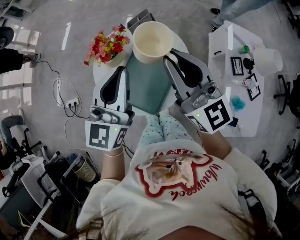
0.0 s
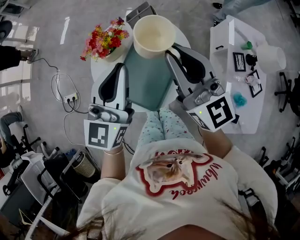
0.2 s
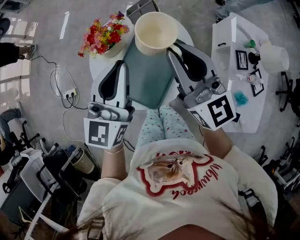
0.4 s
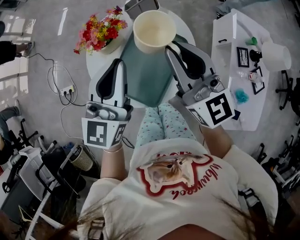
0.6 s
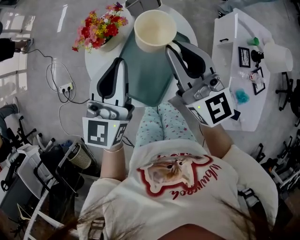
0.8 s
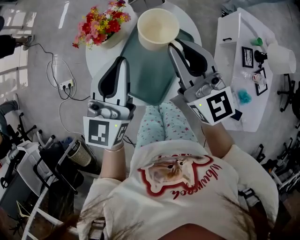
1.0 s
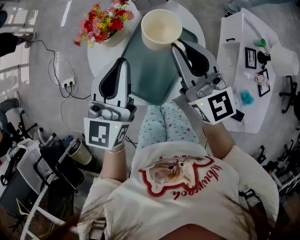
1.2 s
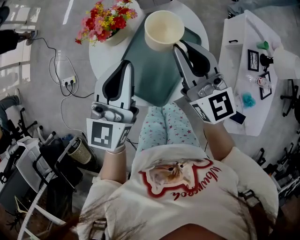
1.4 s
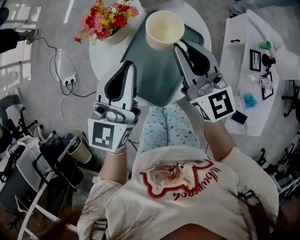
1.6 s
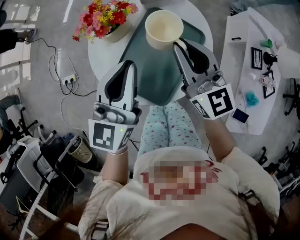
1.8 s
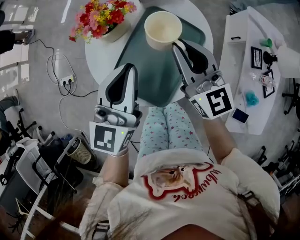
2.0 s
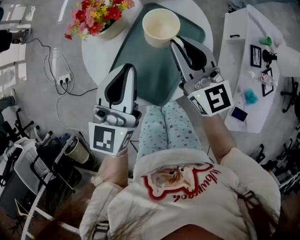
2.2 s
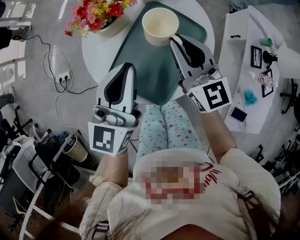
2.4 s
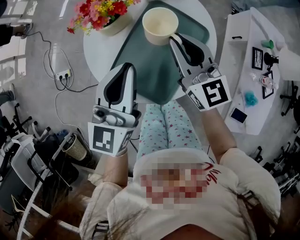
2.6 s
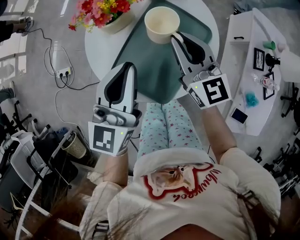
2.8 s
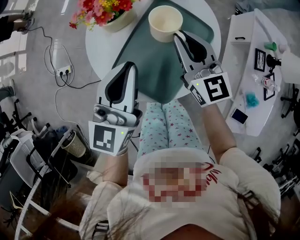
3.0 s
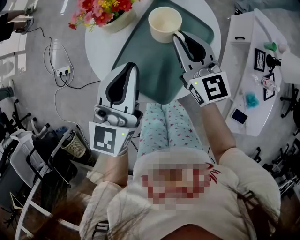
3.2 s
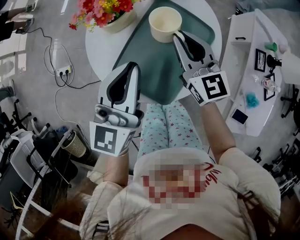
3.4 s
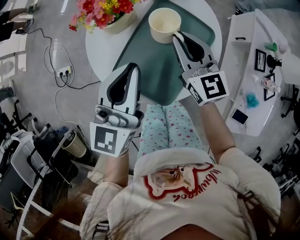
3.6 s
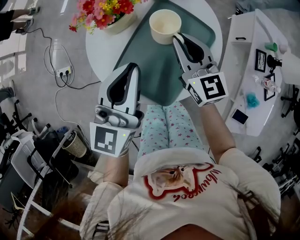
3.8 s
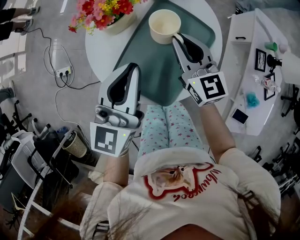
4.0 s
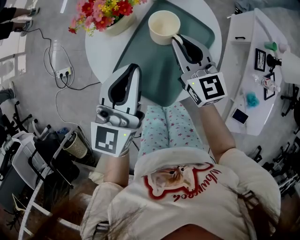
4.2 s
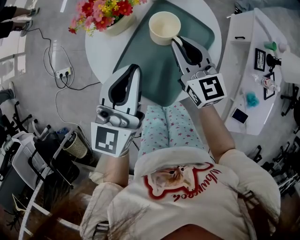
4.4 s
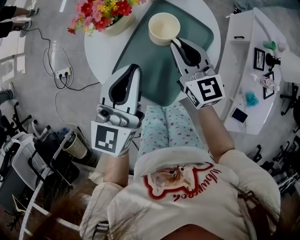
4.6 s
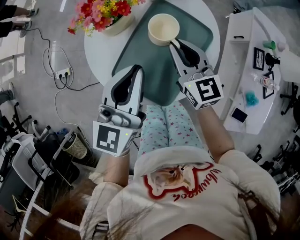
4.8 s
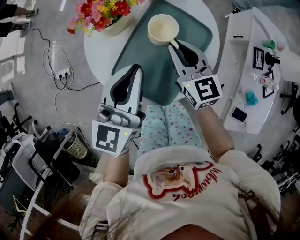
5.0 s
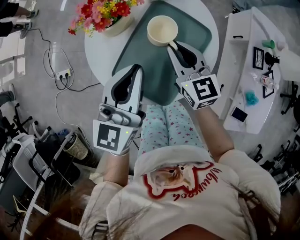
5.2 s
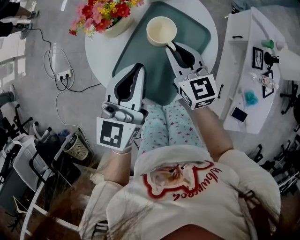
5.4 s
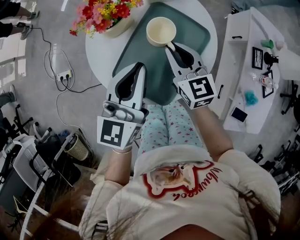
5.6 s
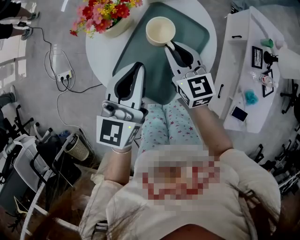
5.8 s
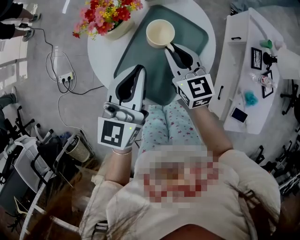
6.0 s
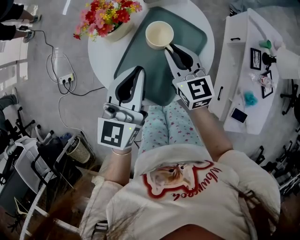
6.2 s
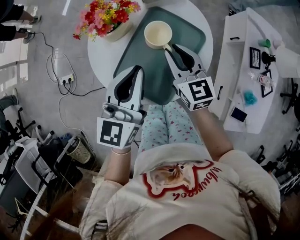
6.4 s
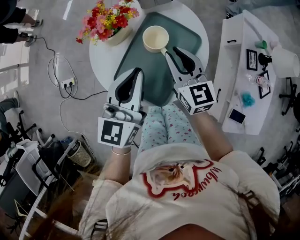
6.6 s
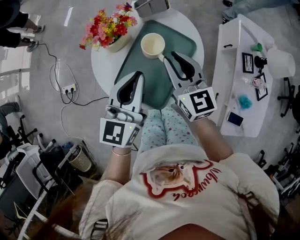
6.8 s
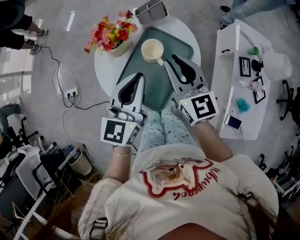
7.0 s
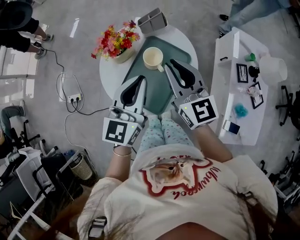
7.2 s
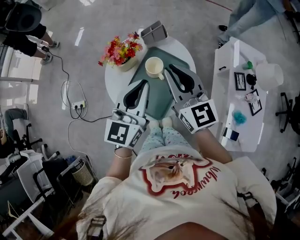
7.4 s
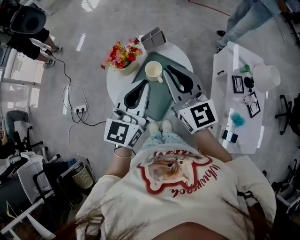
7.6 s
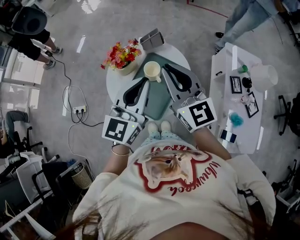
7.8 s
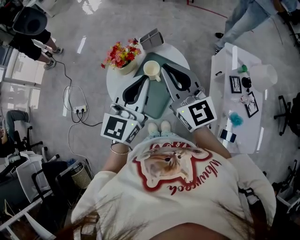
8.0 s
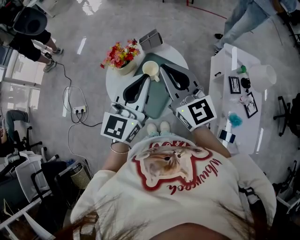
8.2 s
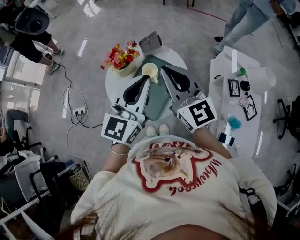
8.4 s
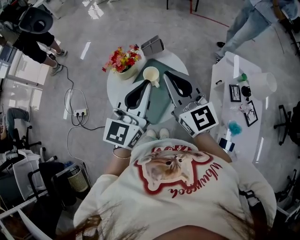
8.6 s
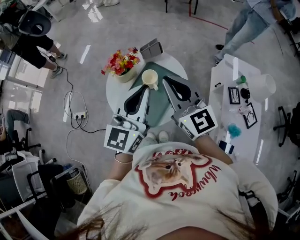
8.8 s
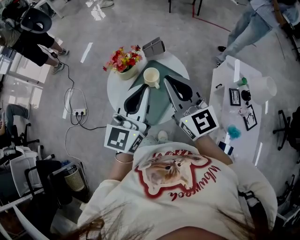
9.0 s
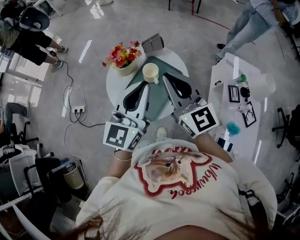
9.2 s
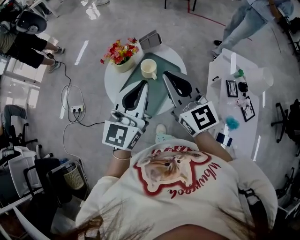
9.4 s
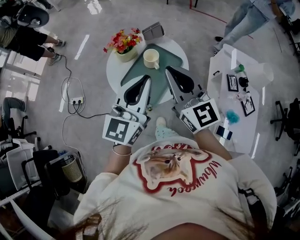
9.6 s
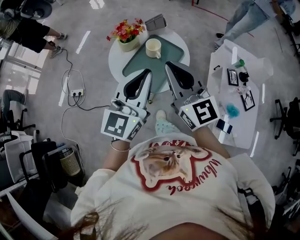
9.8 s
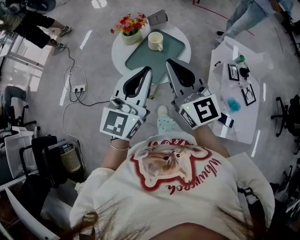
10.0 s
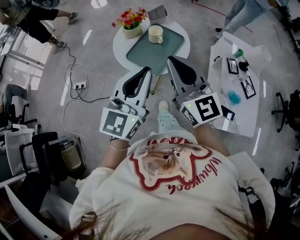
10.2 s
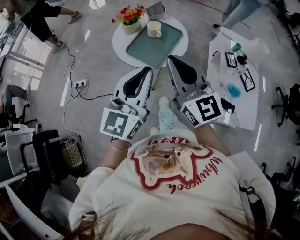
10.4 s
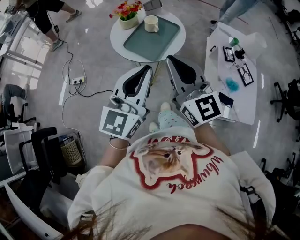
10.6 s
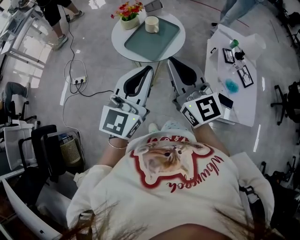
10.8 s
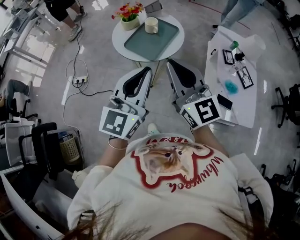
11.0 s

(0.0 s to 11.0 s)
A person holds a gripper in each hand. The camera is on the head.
0.0 s - 1.6 s: Both grippers move downward, approximately 10 cm.
1.6 s - 3.2 s: The right gripper moves downward, about 10 cm.
3.2 s - 4.8 s: The grippers move only a little.
4.8 s - 6.2 s: Neither gripper changes place.
6.2 s - 7.8 s: The left gripper moves upward, roughly 15 cm. Meanwhile the right gripper shifts about 25 cm upward, and turns by roughly 20 degrees.
7.8 s - 9.4 s: The grippers both shift backward by some 5 cm.
9.4 s - 11.0 s: The grippers both shift backward by roughly 30 cm.

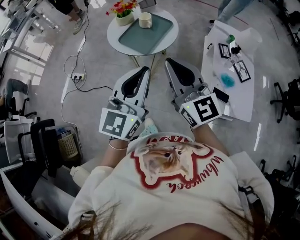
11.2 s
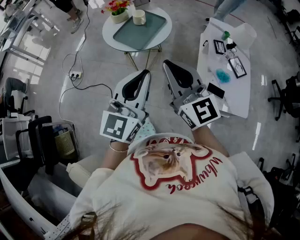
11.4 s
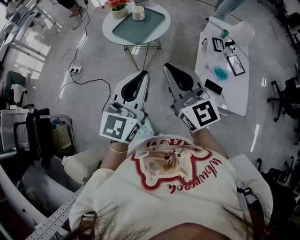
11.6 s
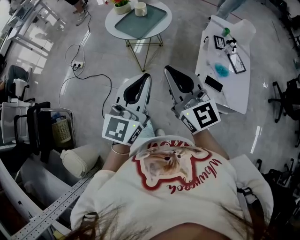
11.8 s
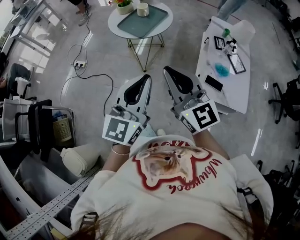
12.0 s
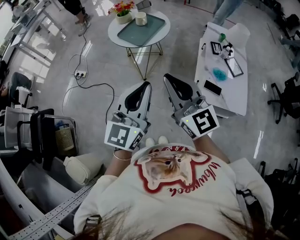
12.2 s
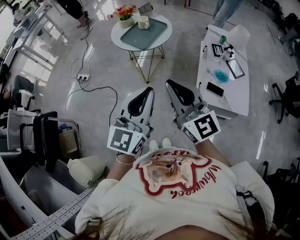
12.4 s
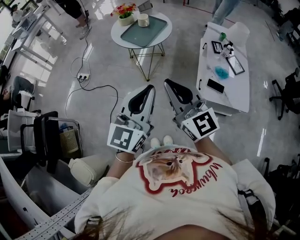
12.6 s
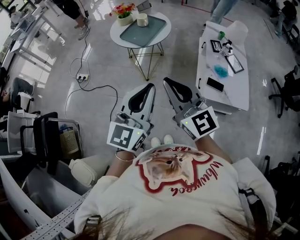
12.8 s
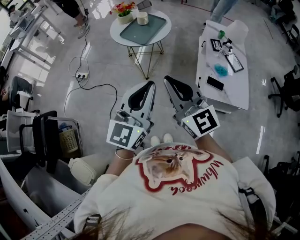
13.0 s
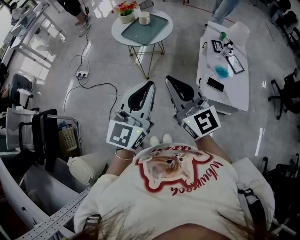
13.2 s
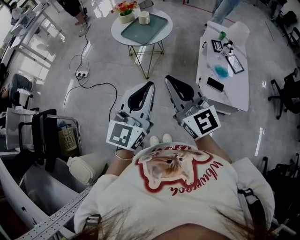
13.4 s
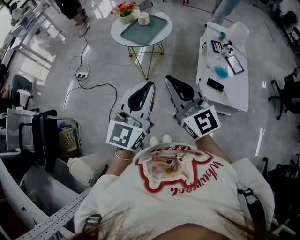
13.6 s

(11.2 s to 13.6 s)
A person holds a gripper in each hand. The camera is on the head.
11.2 s - 12.4 s: Both grippers travel together backward, about 20 cm.
12.4 s - 13.6 s: The grippers move only a little.

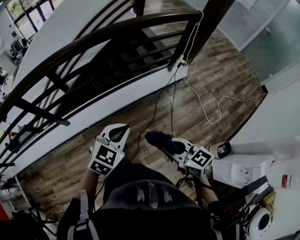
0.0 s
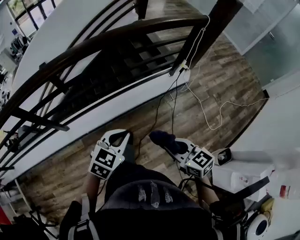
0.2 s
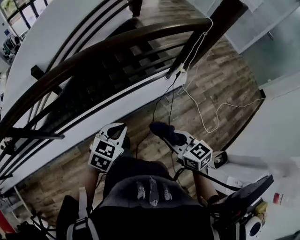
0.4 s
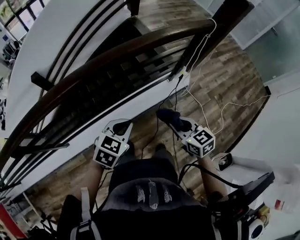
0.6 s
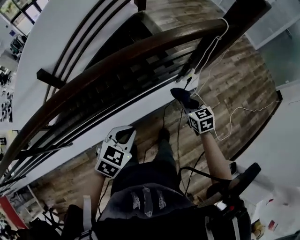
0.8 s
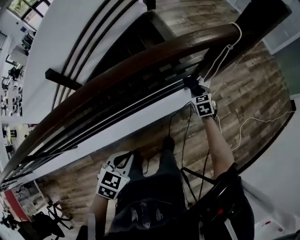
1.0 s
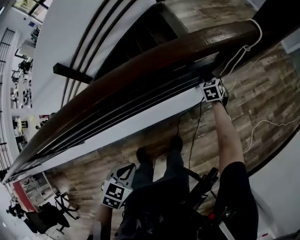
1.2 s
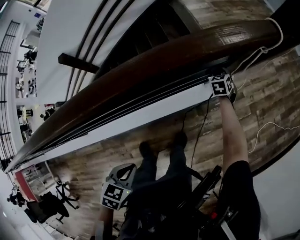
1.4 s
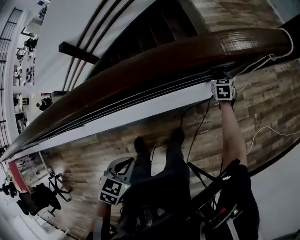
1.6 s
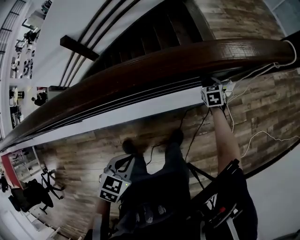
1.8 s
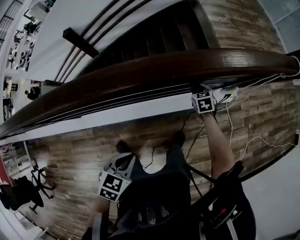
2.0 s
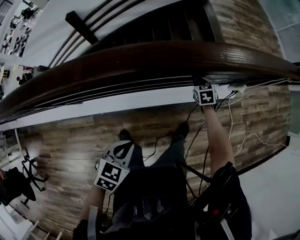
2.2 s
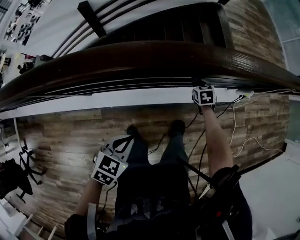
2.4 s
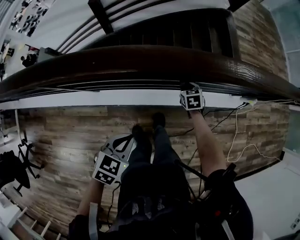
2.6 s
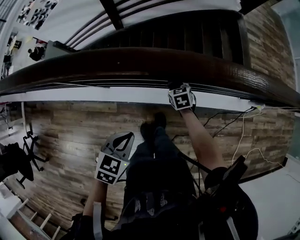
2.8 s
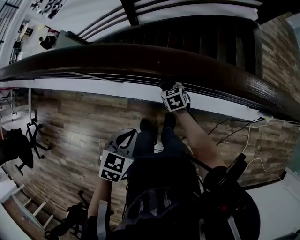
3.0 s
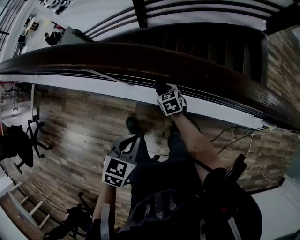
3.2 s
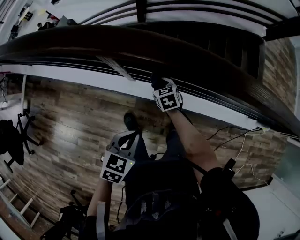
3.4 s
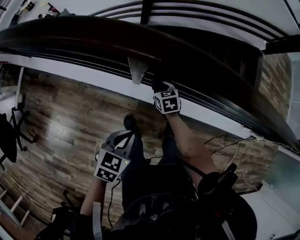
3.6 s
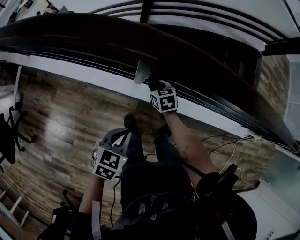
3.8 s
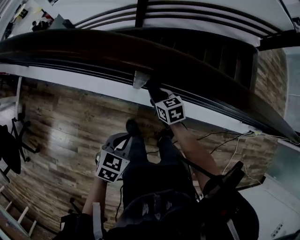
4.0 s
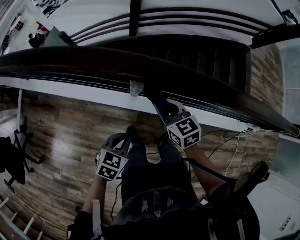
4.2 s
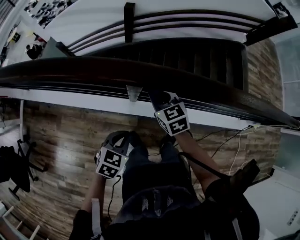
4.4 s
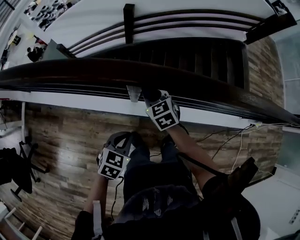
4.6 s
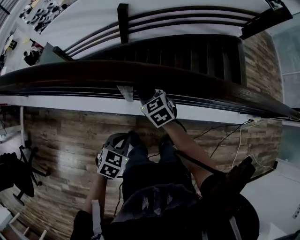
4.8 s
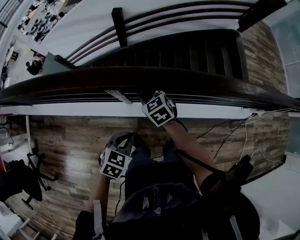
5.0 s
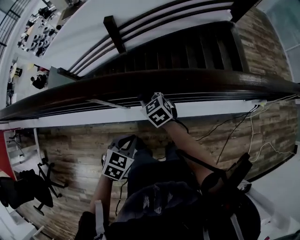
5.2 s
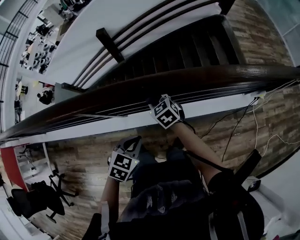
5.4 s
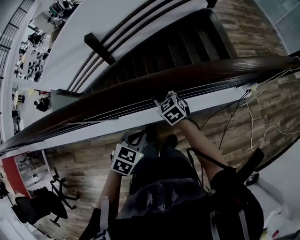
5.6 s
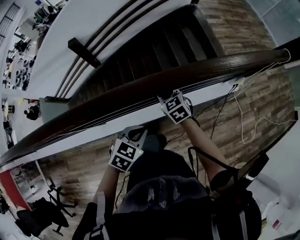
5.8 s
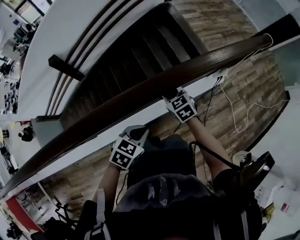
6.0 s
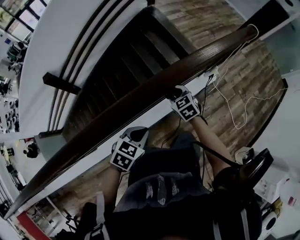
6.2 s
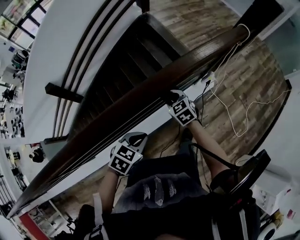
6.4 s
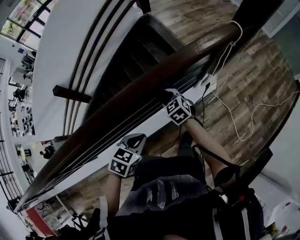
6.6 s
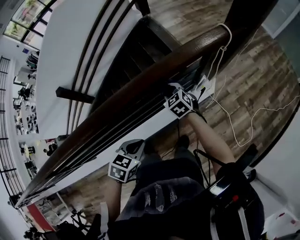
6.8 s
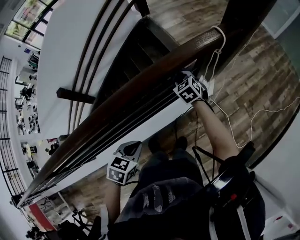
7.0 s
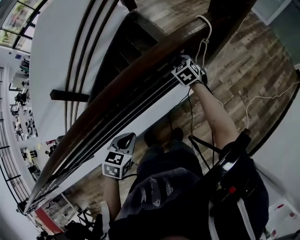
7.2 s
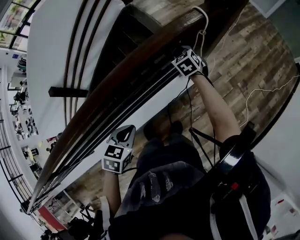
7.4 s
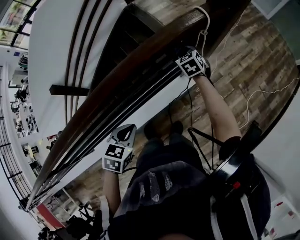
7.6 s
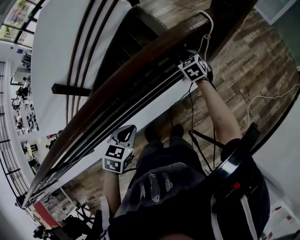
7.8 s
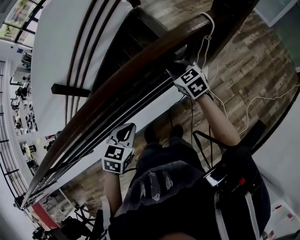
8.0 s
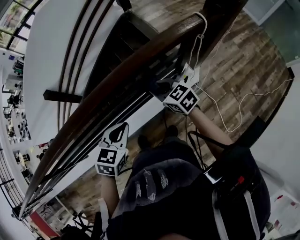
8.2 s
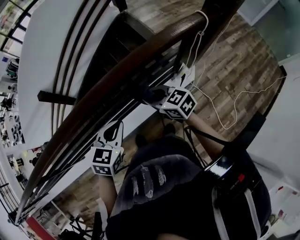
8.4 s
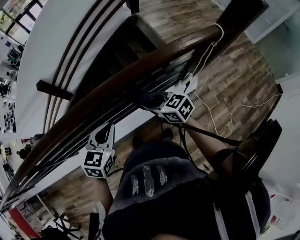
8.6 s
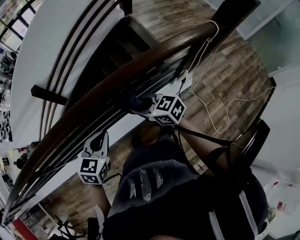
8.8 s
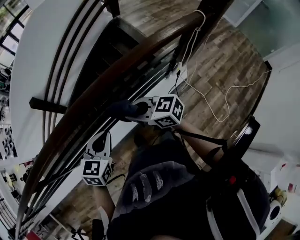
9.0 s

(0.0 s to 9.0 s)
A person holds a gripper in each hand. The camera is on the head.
0.0 s - 1.6 s: The right gripper moves approximately 90 cm, and swivels approximately 50 degrees, while the left gripper ends up about 40 cm from where it was, and turns by approximately 40 degrees.
1.6 s - 3.0 s: Both grippers are carried some 70 cm. The right gripper turns by some 40 degrees, while the left gripper swivels some 30 degrees.
3.0 s - 4.4 s: The left gripper goes approximately 30 cm to the left. The right gripper is displaced to the left and upward by approximately 40 cm.
4.4 s - 6.0 s: The two grippers travel together, some 60 cm. The right gripper swivels roughly 30 degrees. The left gripper changes its angle by roughly 40 degrees.
6.0 s - 7.6 s: The two grippers travel together, to the right and forward, some 50 cm. The right gripper rotates roughly 20 degrees.
7.6 s - 9.0 s: The left gripper shifts by approximately 25 cm, and turns by some 20 degrees, while the right gripper moves some 60 cm, and changes its angle by approximately 60 degrees.

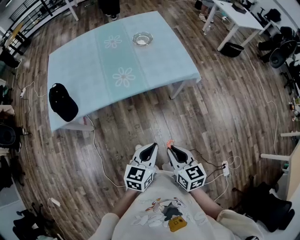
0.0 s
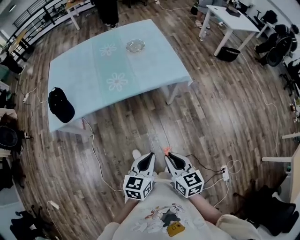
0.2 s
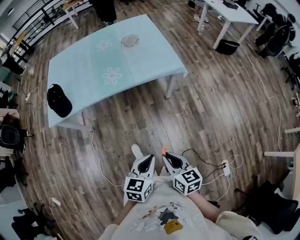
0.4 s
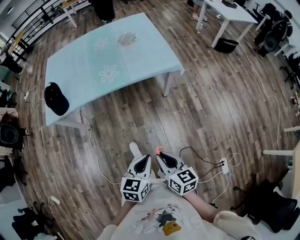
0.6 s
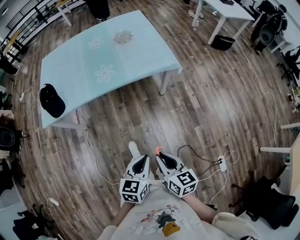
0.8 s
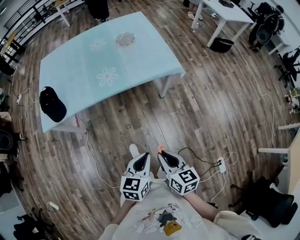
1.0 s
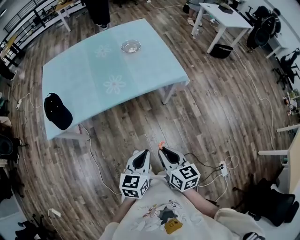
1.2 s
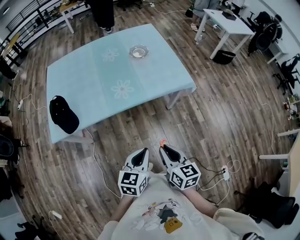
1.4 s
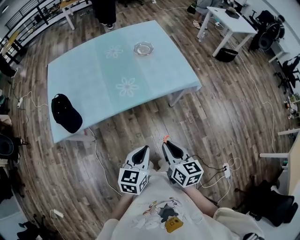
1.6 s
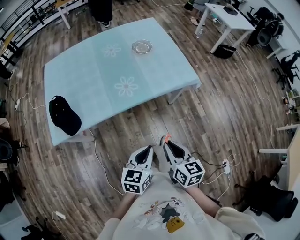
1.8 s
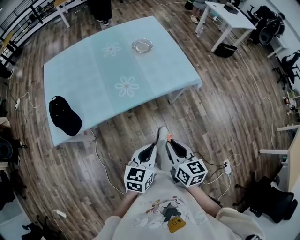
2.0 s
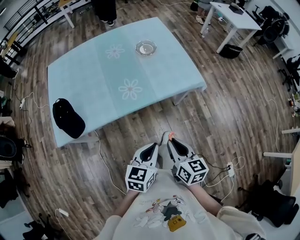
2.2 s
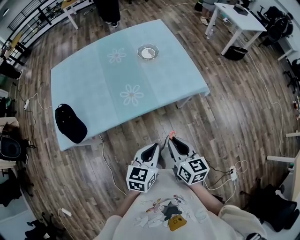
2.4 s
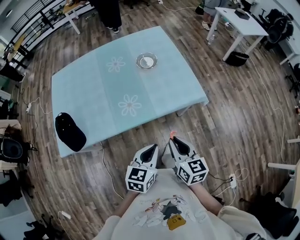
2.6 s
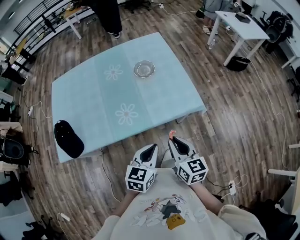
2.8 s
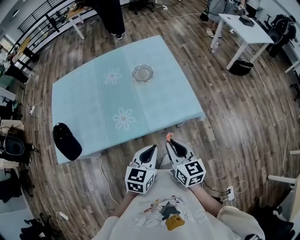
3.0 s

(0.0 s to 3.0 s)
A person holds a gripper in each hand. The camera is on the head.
0.0 s - 1.6 s: The grippers both shift to the left by some 10 cm. The right gripper moves roughly 10 cm backward and comes back.
1.6 s - 3.0 s: The left gripper travels forward and to the right by some 25 cm; the right gripper heads forward, covering approximately 25 cm.
